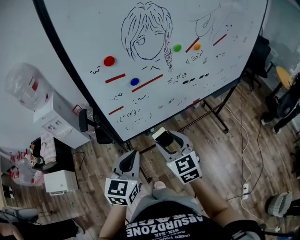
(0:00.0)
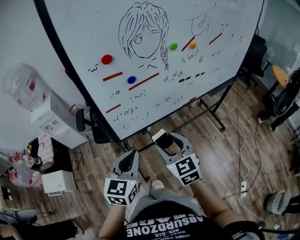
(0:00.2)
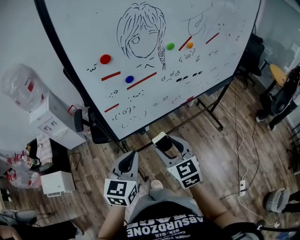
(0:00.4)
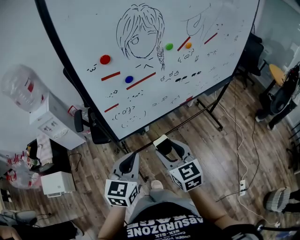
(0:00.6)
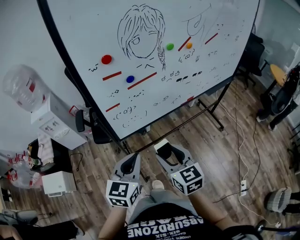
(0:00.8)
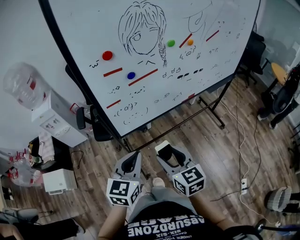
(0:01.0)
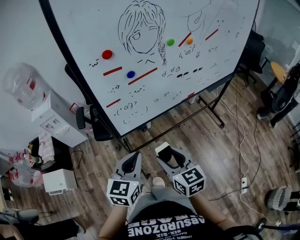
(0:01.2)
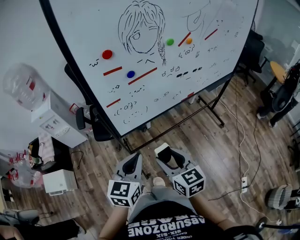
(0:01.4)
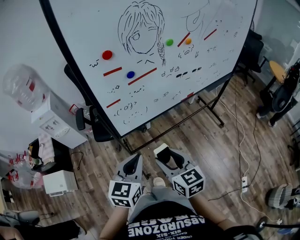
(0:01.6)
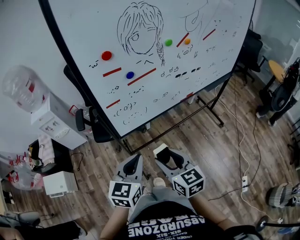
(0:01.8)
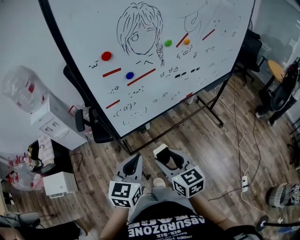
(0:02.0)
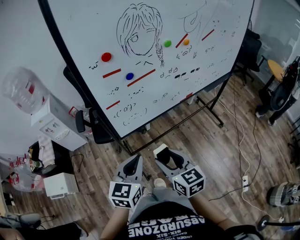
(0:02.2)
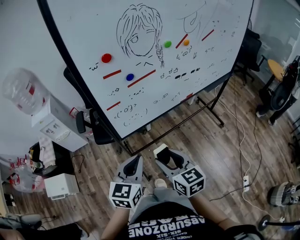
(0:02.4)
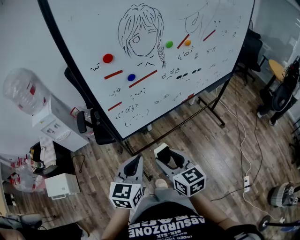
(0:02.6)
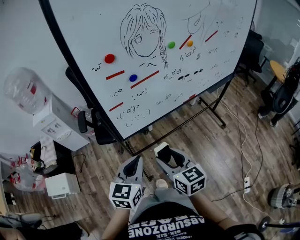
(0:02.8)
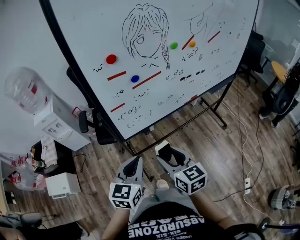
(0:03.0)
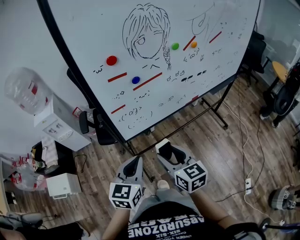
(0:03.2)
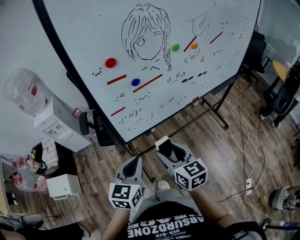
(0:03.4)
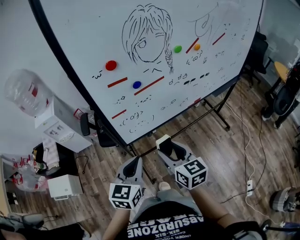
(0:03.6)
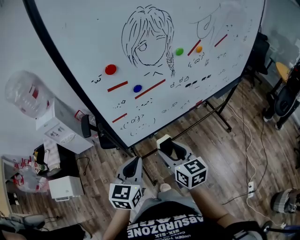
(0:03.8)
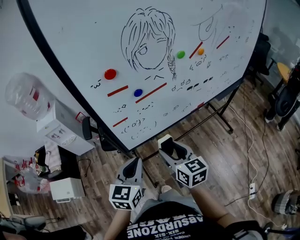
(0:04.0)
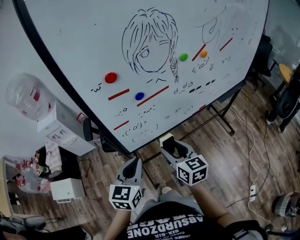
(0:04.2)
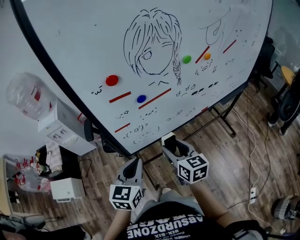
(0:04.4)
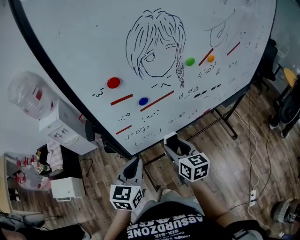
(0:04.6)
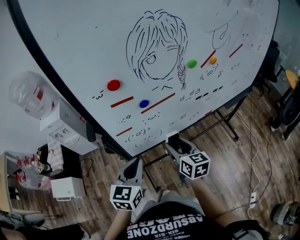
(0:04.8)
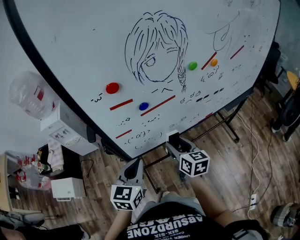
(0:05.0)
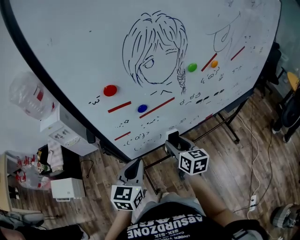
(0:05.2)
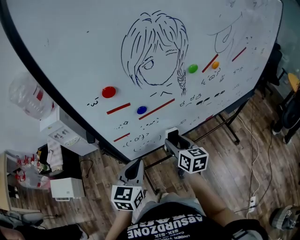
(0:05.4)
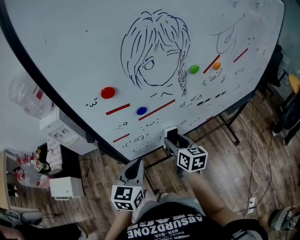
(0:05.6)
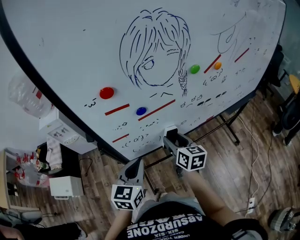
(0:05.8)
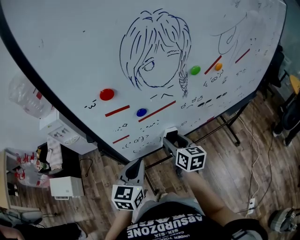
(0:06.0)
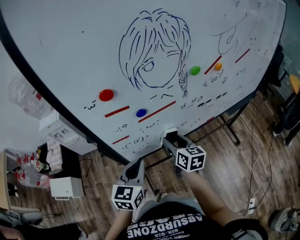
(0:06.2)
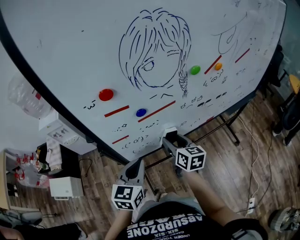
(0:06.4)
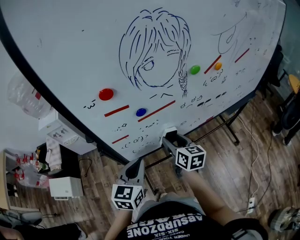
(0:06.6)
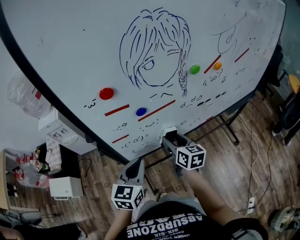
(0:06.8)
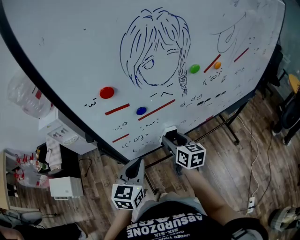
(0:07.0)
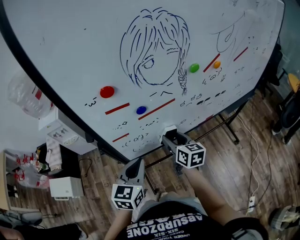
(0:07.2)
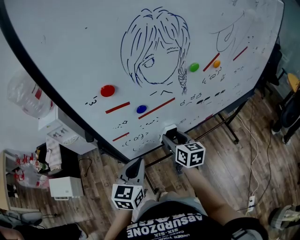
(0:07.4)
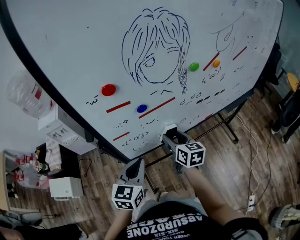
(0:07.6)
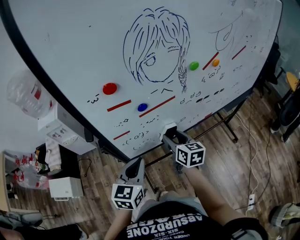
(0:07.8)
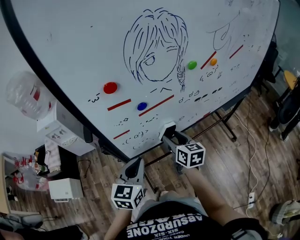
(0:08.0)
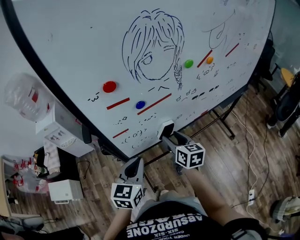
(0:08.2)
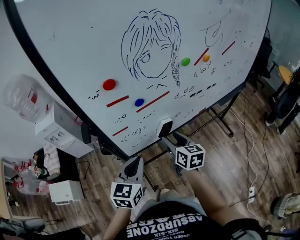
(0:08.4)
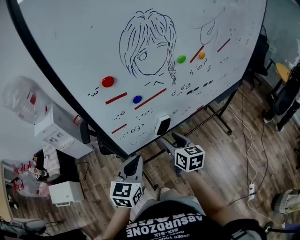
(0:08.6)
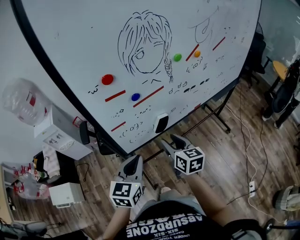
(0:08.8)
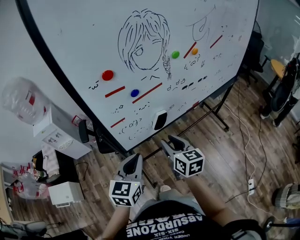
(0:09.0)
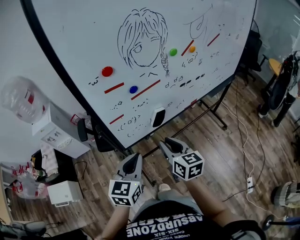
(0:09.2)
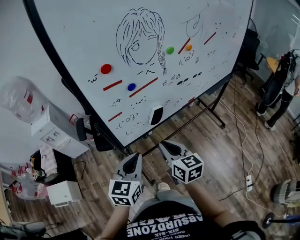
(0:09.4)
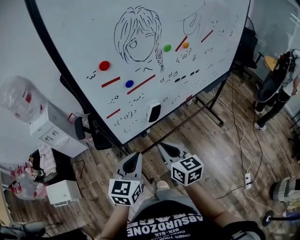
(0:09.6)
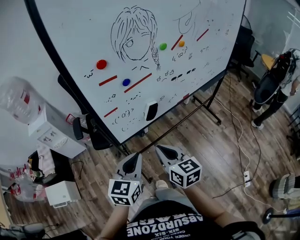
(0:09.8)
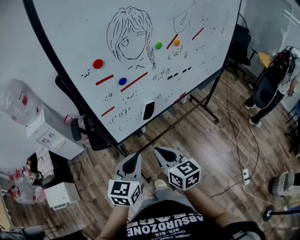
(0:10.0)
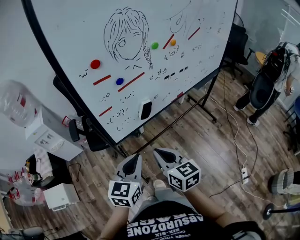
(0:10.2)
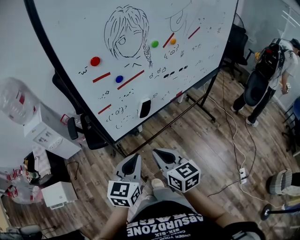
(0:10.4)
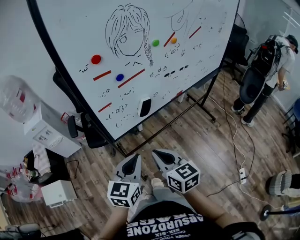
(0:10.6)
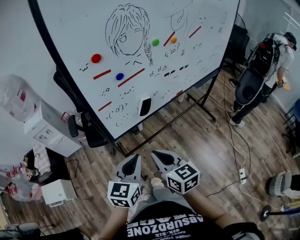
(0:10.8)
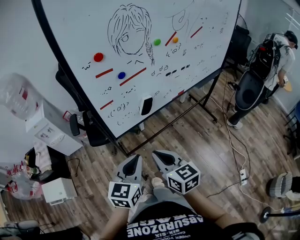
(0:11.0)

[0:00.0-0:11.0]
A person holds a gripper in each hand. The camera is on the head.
0:00.0 to 0:01.6: The right gripper goes roughly 10 cm backward, and rotates some 20 degrees, while the left gripper goes some 5 cm backward.
0:01.6 to 0:03.2: The grippers stay close to where they were, moving slightly.
0:03.2 to 0:04.8: The right gripper shifts about 15 cm forward; the left gripper travels forward by some 10 cm.
0:04.8 to 0:06.2: The right gripper moves forward, some 5 cm.
0:06.2 to 0:07.8: The grippers make only small movements.
0:07.8 to 0:09.4: The left gripper travels backward by some 10 cm. Meanwhile the right gripper moves backward, roughly 15 cm, and closes.
0:09.4 to 0:11.0: Both grippers move backward, approximately 10 cm.

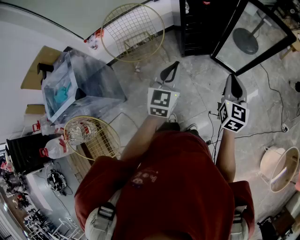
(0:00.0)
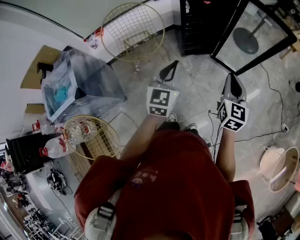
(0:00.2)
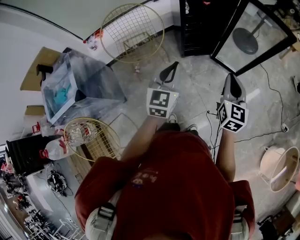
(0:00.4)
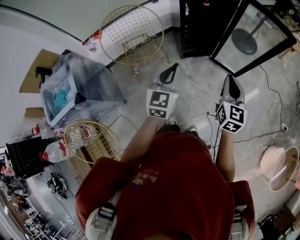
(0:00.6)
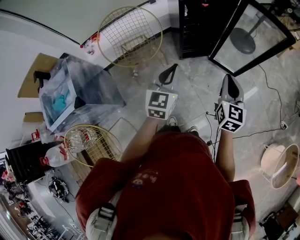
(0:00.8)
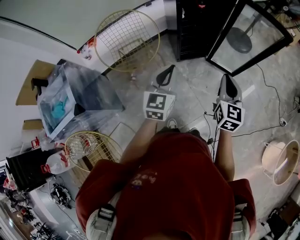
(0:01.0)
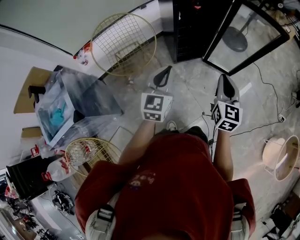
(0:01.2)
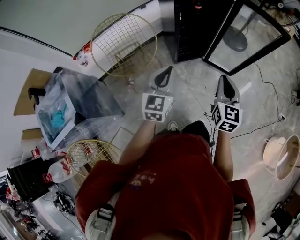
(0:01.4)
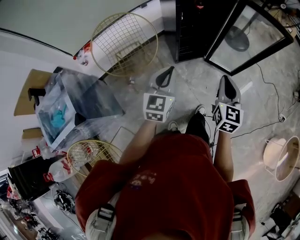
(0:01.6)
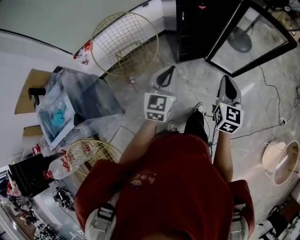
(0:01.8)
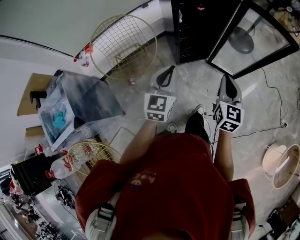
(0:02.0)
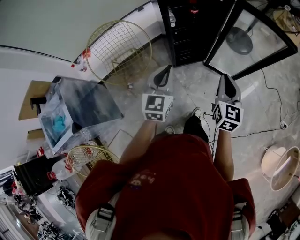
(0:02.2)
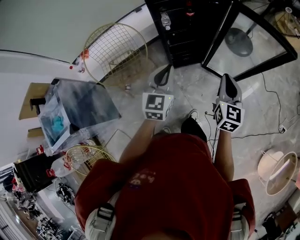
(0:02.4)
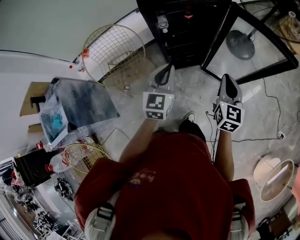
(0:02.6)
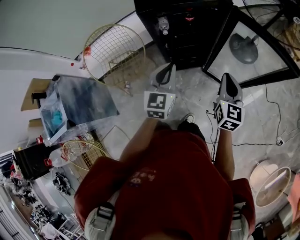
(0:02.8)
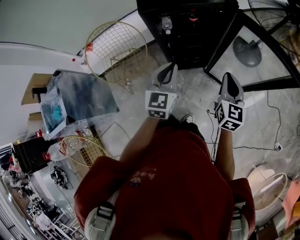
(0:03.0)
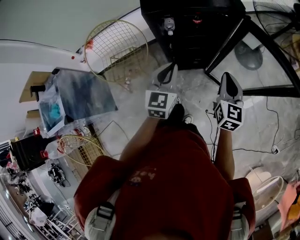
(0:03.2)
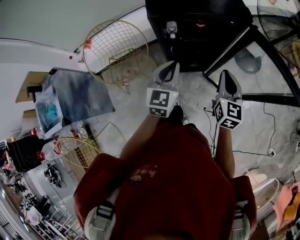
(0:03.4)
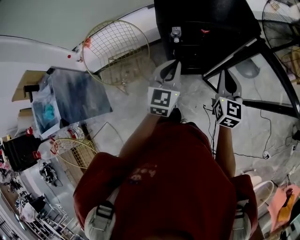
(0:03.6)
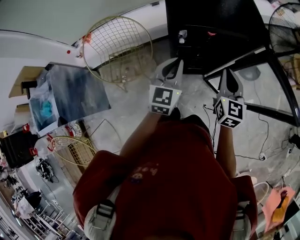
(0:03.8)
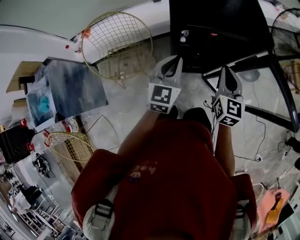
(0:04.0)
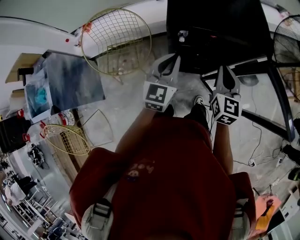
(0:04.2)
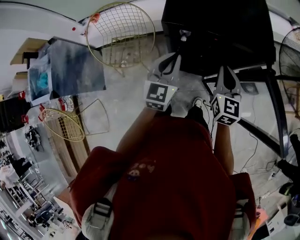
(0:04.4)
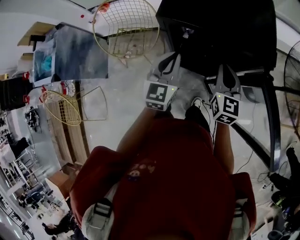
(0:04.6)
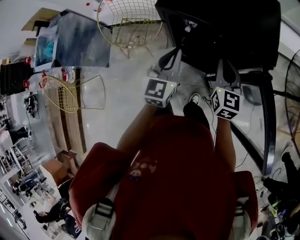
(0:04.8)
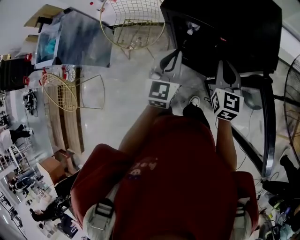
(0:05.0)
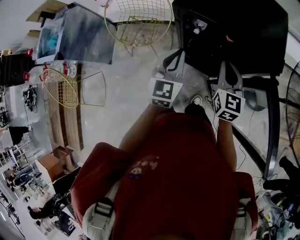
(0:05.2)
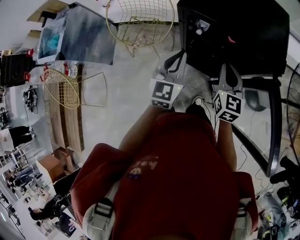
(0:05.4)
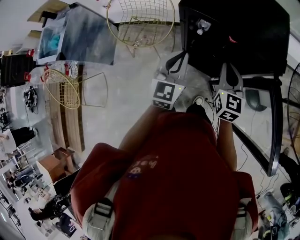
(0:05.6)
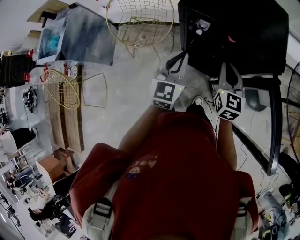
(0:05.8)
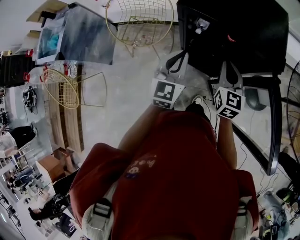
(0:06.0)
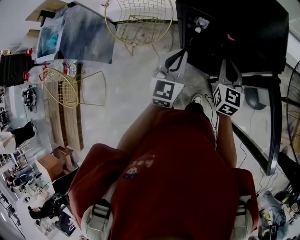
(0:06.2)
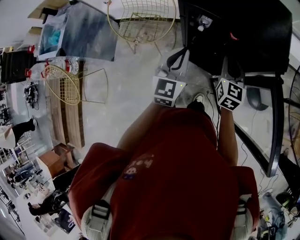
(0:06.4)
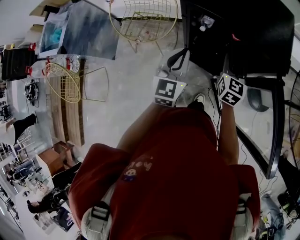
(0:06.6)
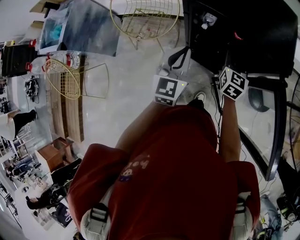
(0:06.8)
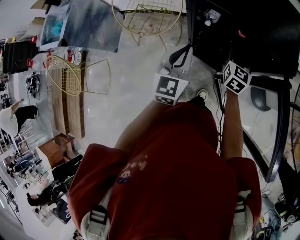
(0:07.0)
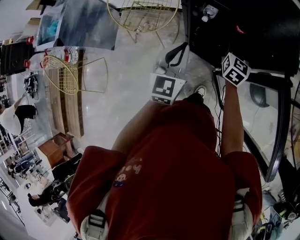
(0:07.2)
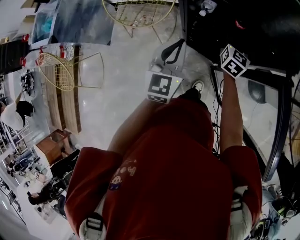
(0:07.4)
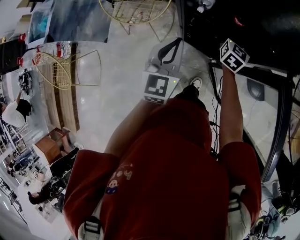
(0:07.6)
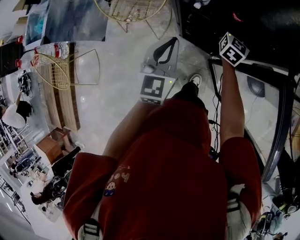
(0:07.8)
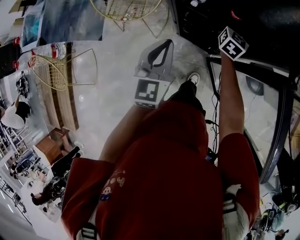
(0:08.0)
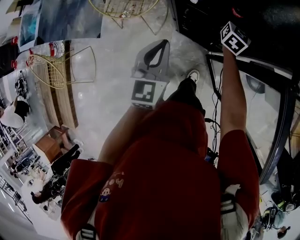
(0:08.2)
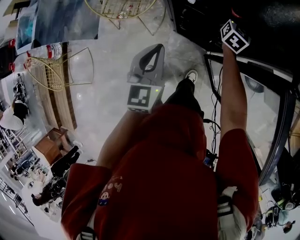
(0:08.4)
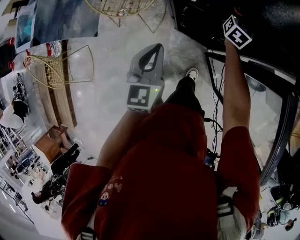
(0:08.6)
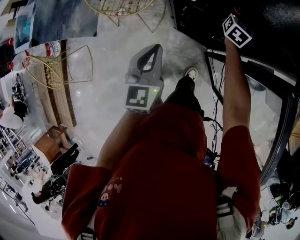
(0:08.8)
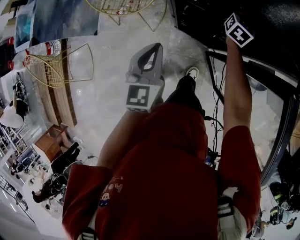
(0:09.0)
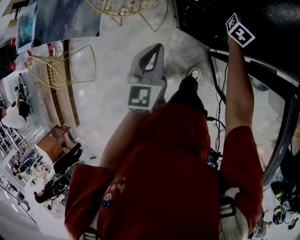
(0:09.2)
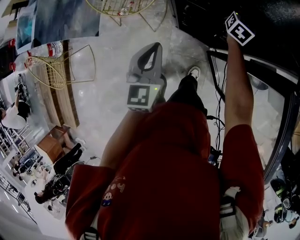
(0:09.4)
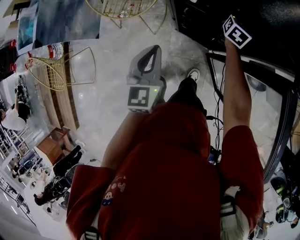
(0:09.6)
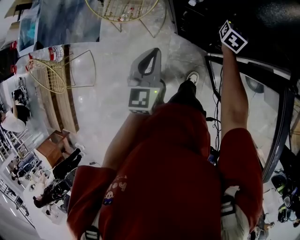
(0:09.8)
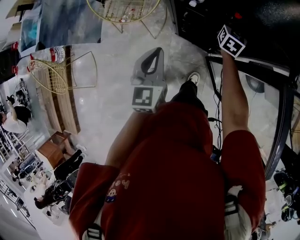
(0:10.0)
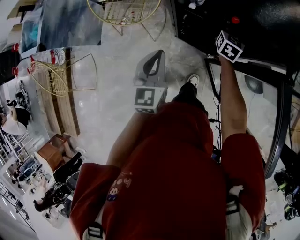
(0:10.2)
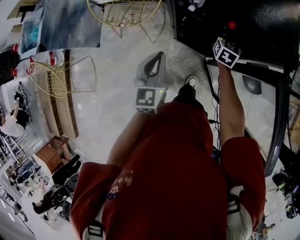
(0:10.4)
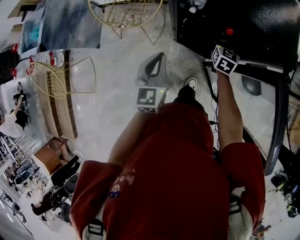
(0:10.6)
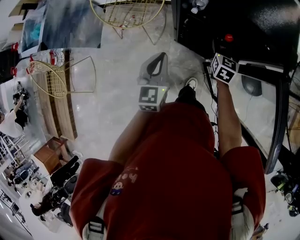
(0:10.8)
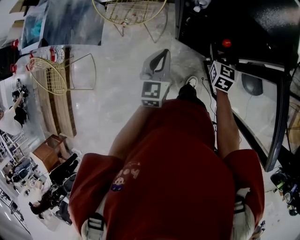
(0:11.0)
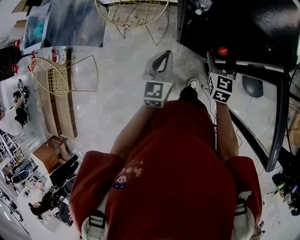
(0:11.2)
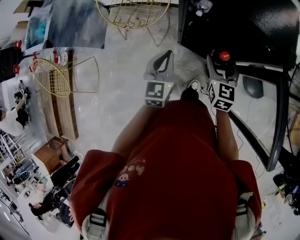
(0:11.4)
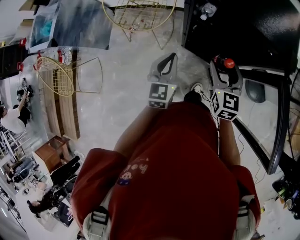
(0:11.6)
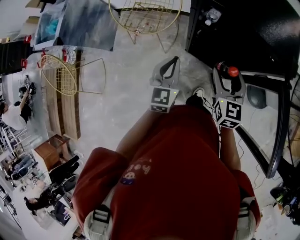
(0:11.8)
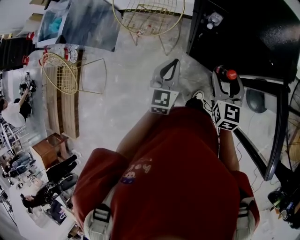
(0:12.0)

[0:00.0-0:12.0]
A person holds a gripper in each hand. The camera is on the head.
0:00.0 to 0:01.6: The right gripper shifts roughly 10 cm to the left, while the left gripper goes some 10 cm to the left and forward.
0:01.6 to 0:03.0: Both grippers travel together forward and to the right, some 30 cm.
0:03.0 to 0:04.4: Both grippers travel together forward and to the left, roughly 20 cm. The right gripper rotates some 20 degrees.
0:04.4 to 0:06.0: There are only small adjustments of the grippers.
0:06.0 to 0:07.6: The right gripper travels downward and forward by approximately 20 cm, and opens up, while the left gripper is displaced downward by roughly 5 cm.
0:07.6 to 0:09.0: The left gripper is displaced downward by about 5 cm, while the right gripper shifts some 10 cm forward and downward.
0:09.0 to 0:10.4: The right gripper moves backward, about 10 cm.
0:10.4 to 0:12.0: The right gripper is displaced backward, upward and to the left by about 25 cm, and changes its angle by some 20 degrees.

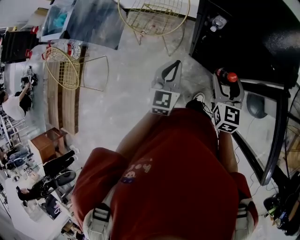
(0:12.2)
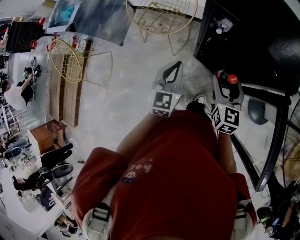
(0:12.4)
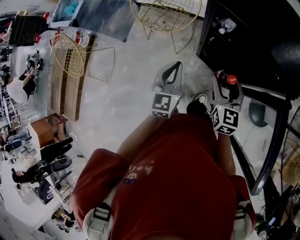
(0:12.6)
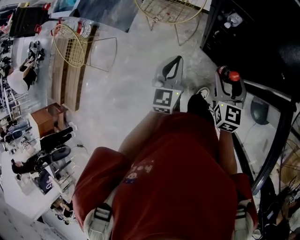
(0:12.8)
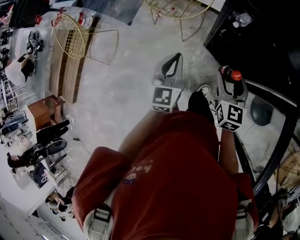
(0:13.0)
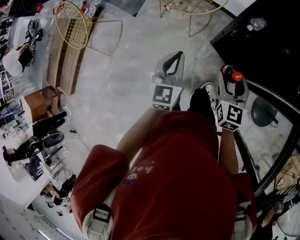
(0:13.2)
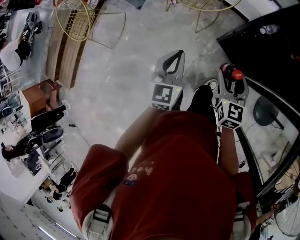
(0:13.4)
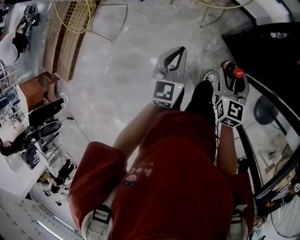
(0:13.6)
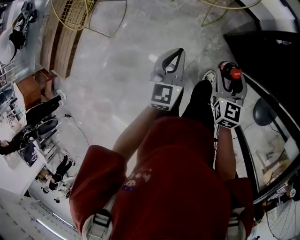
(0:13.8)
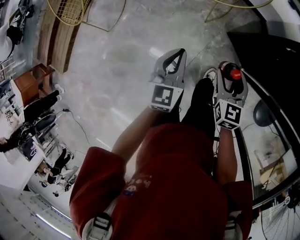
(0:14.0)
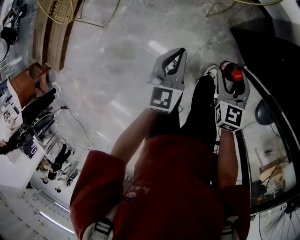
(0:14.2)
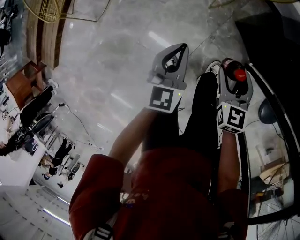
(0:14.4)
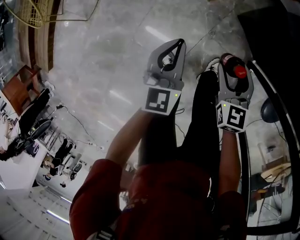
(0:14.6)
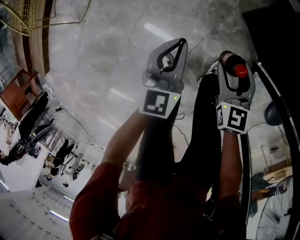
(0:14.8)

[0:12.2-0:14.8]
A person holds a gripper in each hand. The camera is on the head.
0:12.2 to 0:13.4: The left gripper shifts some 15 cm to the left. Meanwhile the right gripper travels to the left and downward by some 15 cm.
0:13.4 to 0:14.8: The two grippers go roughly 40 cm downward.
